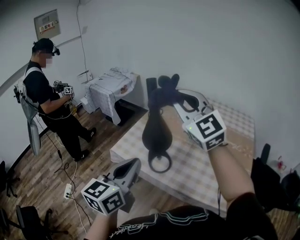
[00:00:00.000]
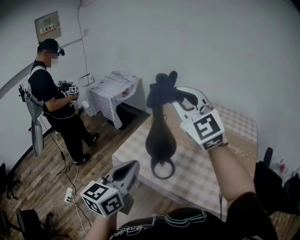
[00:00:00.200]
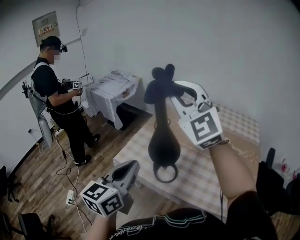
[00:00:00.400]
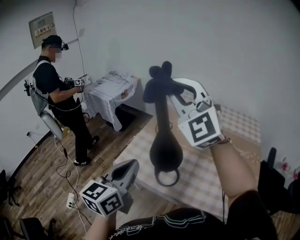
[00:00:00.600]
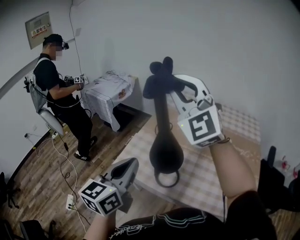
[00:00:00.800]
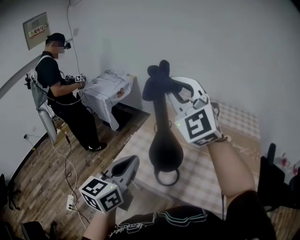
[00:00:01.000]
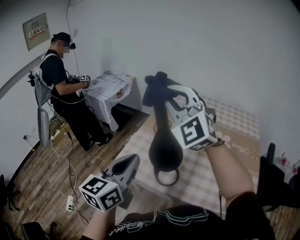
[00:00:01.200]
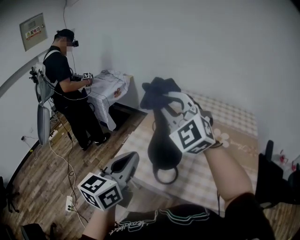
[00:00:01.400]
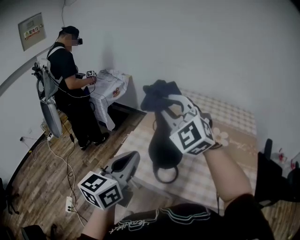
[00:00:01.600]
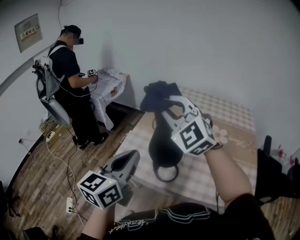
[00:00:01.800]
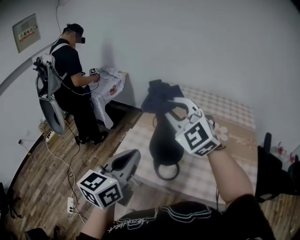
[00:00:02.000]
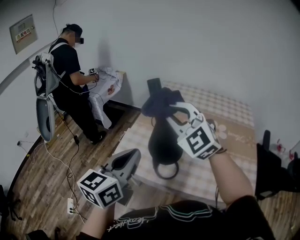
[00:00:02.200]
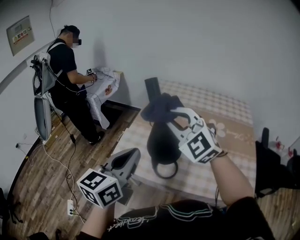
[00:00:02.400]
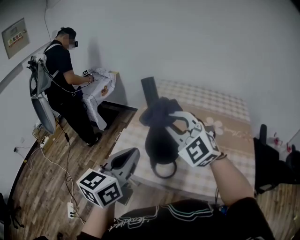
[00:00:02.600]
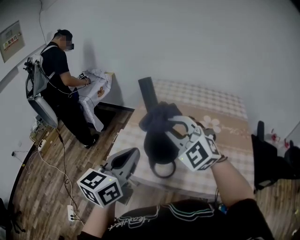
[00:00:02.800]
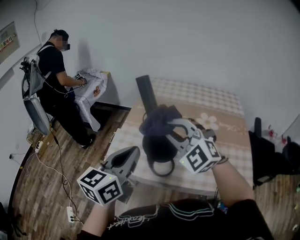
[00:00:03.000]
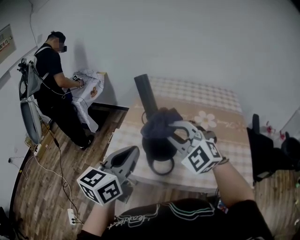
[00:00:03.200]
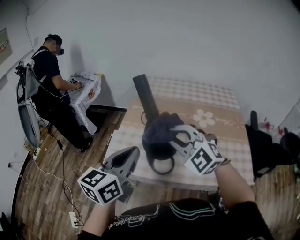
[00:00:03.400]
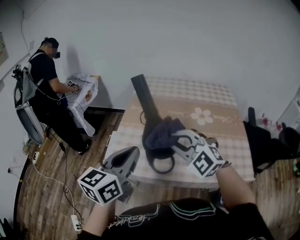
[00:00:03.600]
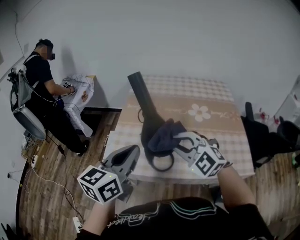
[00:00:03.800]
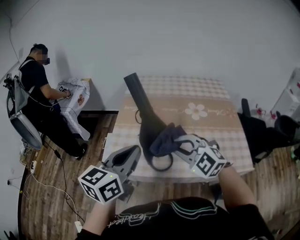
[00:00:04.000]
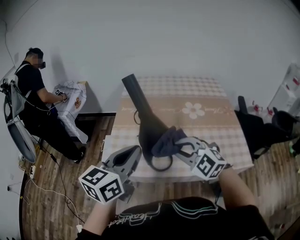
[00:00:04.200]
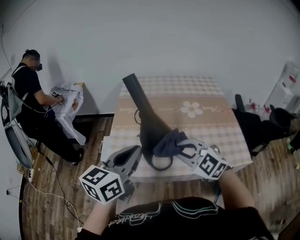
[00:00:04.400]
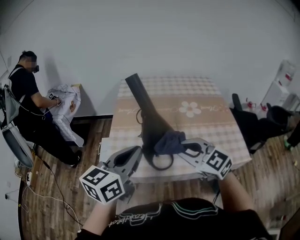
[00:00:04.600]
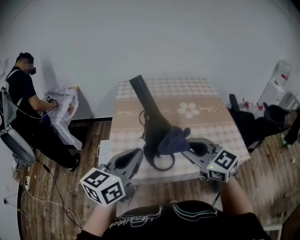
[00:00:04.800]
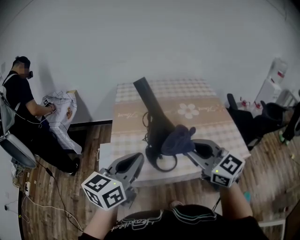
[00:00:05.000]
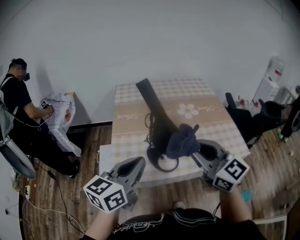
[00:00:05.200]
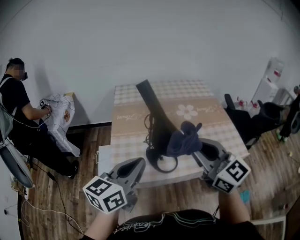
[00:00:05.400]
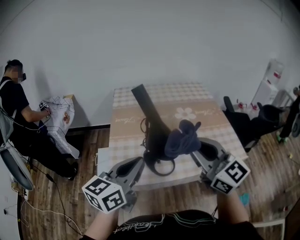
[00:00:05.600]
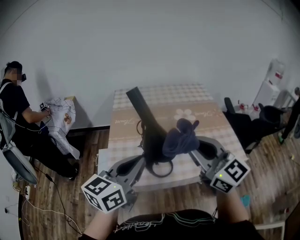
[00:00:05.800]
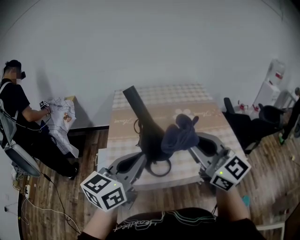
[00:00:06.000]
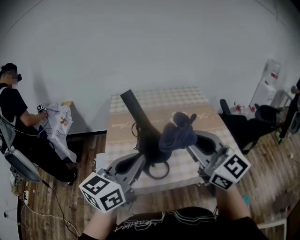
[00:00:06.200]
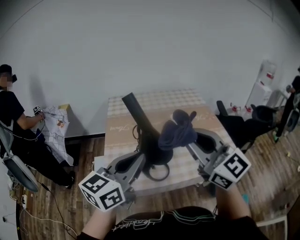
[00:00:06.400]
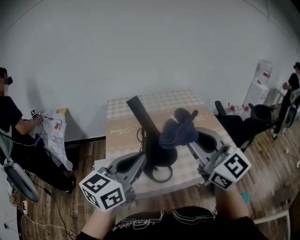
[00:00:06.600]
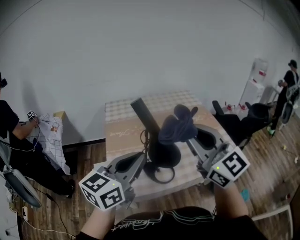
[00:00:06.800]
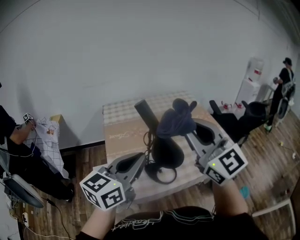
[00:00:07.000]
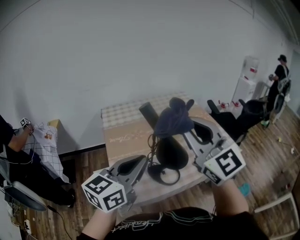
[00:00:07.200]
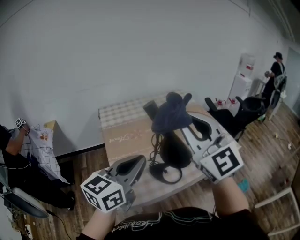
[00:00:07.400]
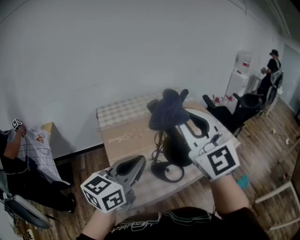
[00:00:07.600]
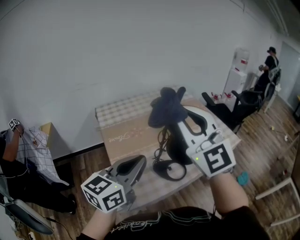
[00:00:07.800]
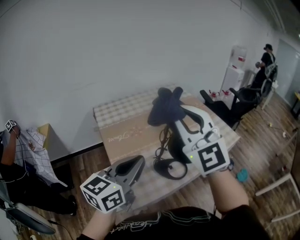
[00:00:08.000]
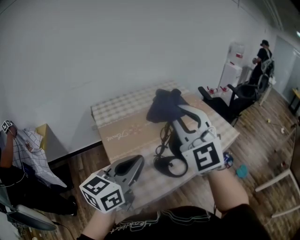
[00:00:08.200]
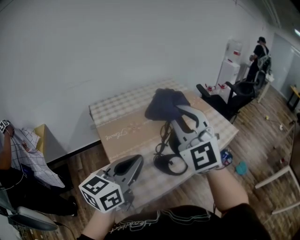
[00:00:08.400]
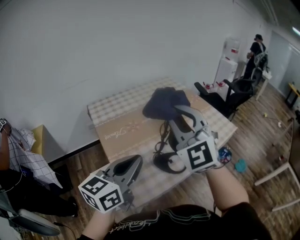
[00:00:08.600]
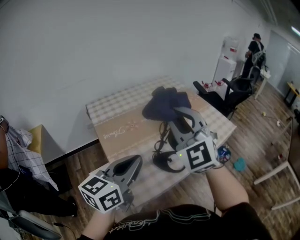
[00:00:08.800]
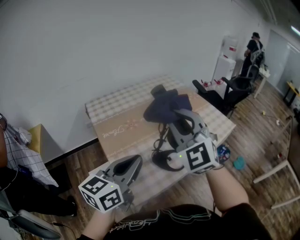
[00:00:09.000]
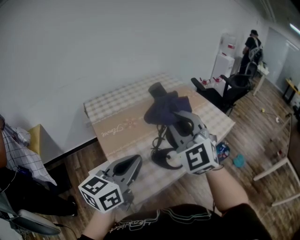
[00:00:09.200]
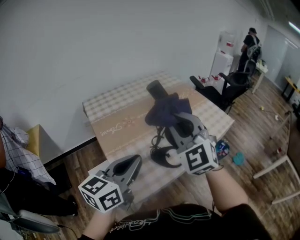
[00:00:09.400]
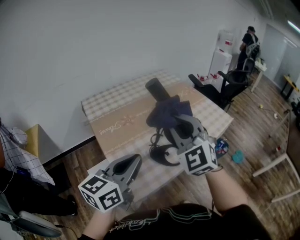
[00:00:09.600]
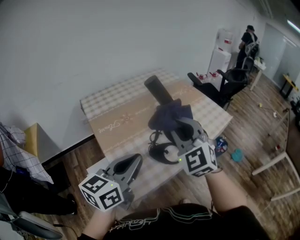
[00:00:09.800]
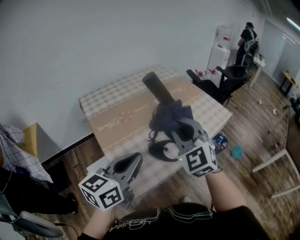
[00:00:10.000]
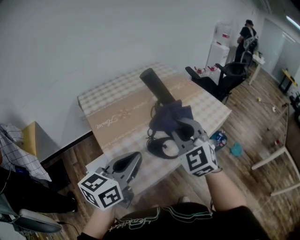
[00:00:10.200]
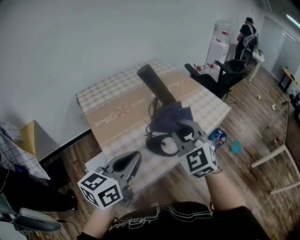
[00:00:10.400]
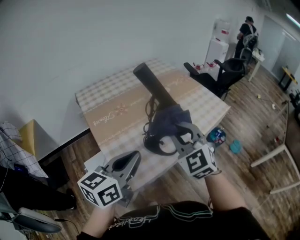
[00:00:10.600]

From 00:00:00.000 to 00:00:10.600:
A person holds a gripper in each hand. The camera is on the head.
From 00:00:00.000 to 00:00:01.600: The right gripper shifts some 10 cm to the left, forward and downward, and turns by approximately 20 degrees. The left gripper goes about 10 cm forward.
From 00:00:01.600 to 00:00:03.000: The right gripper moves downward and backward, some 10 cm.
From 00:00:03.000 to 00:00:04.600: The right gripper heads backward and downward, covering some 10 cm, and rotates some 40 degrees. The left gripper turns by roughly 20 degrees.
From 00:00:04.600 to 00:00:06.000: The right gripper shifts approximately 15 cm upward, and turns by approximately 30 degrees.
From 00:00:06.000 to 00:00:07.600: The left gripper shifts approximately 15 cm to the left. The right gripper travels to the left and upward by roughly 20 cm, and rotates about 40 degrees.
From 00:00:07.600 to 00:00:09.000: The left gripper is displaced to the left by roughly 5 cm. Meanwhile the right gripper is displaced downward and to the left by some 10 cm, and rotates roughly 30 degrees.
From 00:00:09.000 to 00:00:10.600: The right gripper heads downward and to the right, covering about 15 cm. The left gripper shifts by some 5 cm.

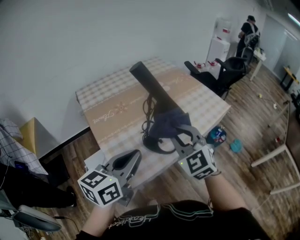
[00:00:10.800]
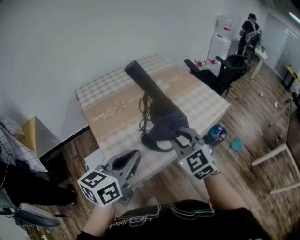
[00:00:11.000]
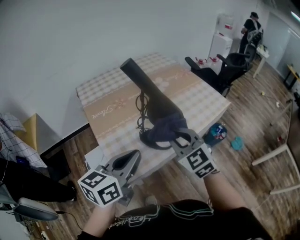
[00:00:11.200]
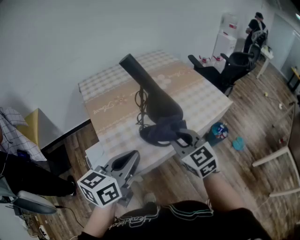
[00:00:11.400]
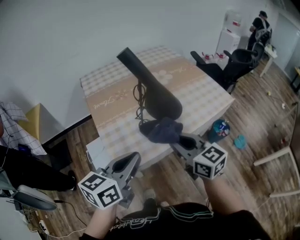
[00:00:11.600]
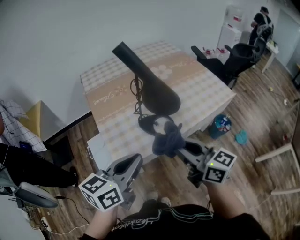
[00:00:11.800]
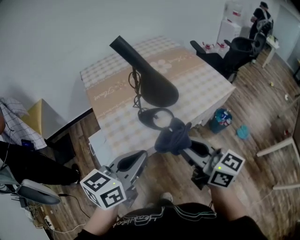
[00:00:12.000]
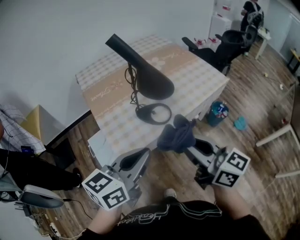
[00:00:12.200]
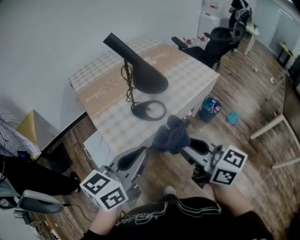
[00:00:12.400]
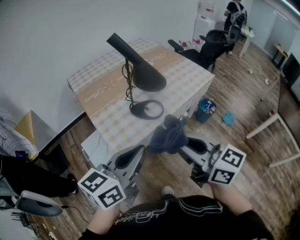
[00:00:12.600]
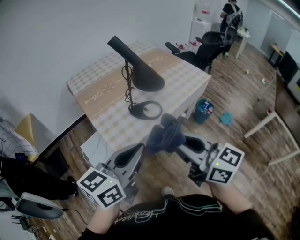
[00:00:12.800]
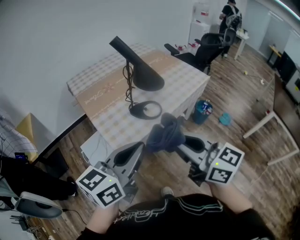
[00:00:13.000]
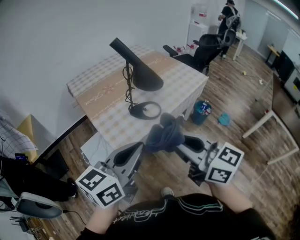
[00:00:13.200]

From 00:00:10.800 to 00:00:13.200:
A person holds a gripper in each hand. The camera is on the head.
From 00:00:10.800 to 00:00:12.000: The two grippers go about 15 cm backward and to the right. The right gripper twists about 50 degrees clockwise, seen from behind.
From 00:00:12.000 to 00:00:13.200: Both grippers travel together backward and upward, about 15 cm.

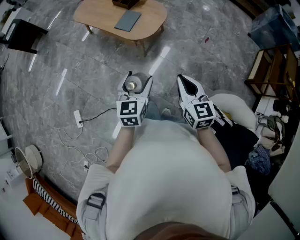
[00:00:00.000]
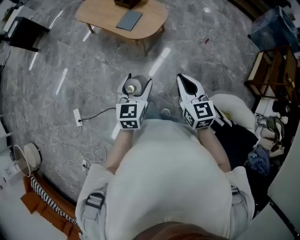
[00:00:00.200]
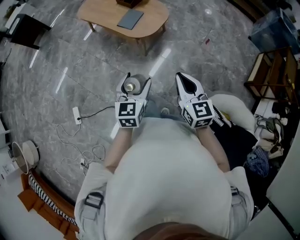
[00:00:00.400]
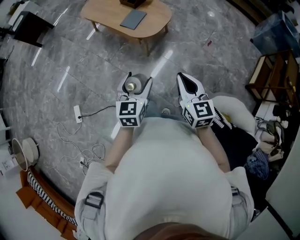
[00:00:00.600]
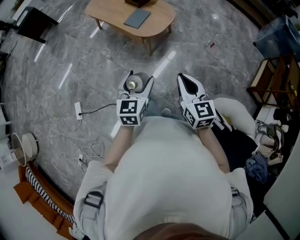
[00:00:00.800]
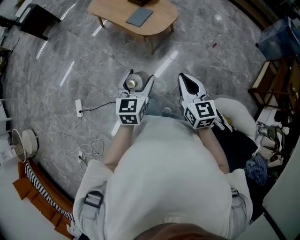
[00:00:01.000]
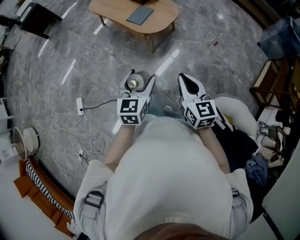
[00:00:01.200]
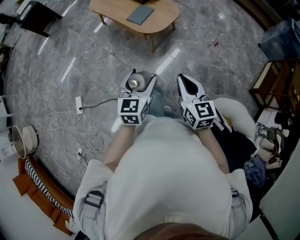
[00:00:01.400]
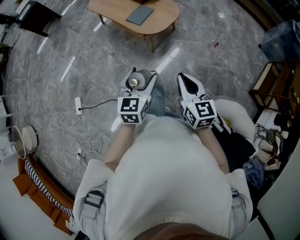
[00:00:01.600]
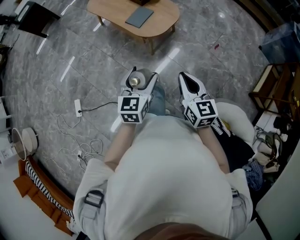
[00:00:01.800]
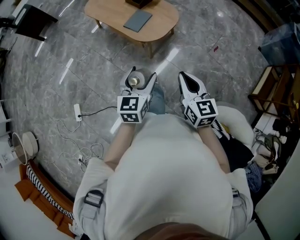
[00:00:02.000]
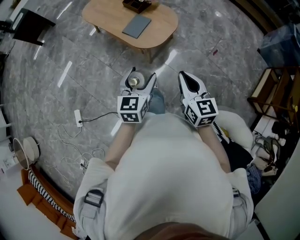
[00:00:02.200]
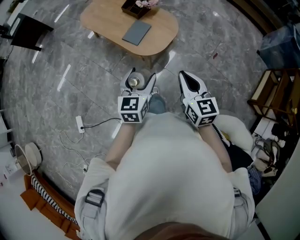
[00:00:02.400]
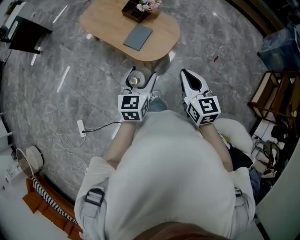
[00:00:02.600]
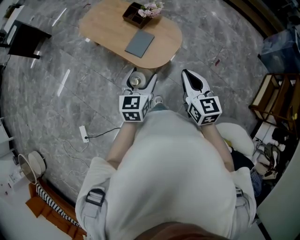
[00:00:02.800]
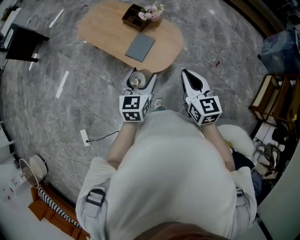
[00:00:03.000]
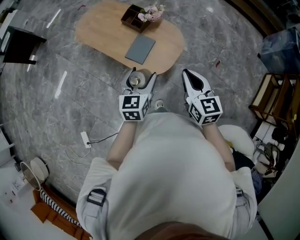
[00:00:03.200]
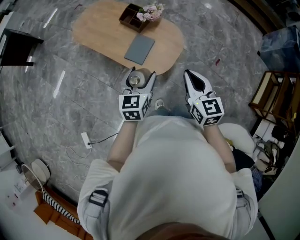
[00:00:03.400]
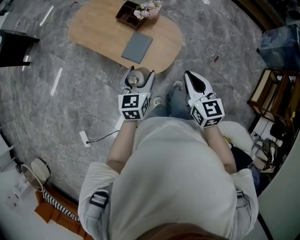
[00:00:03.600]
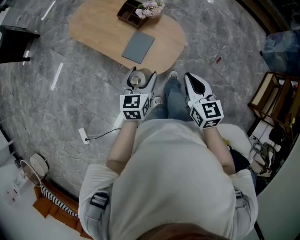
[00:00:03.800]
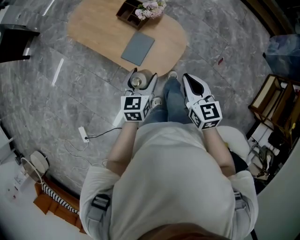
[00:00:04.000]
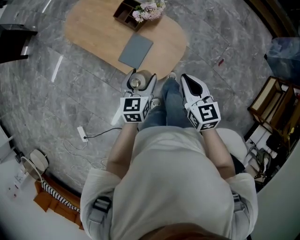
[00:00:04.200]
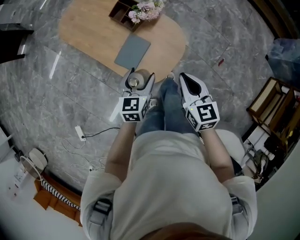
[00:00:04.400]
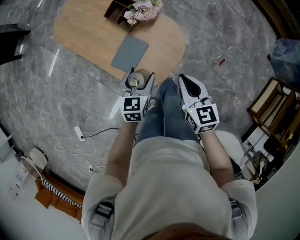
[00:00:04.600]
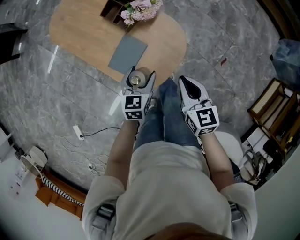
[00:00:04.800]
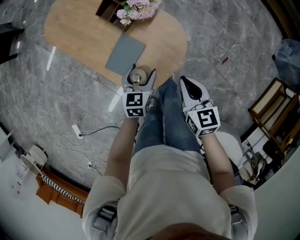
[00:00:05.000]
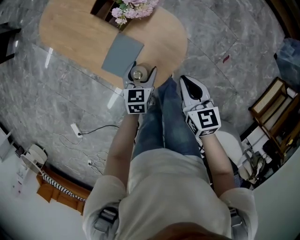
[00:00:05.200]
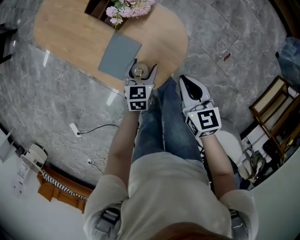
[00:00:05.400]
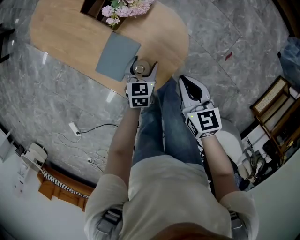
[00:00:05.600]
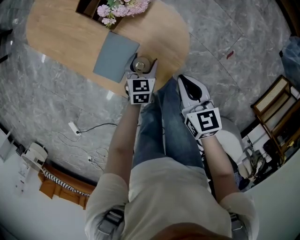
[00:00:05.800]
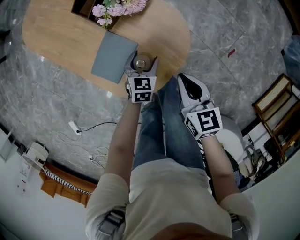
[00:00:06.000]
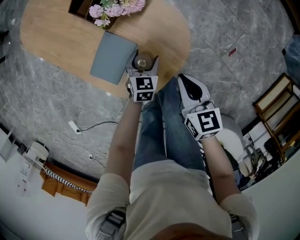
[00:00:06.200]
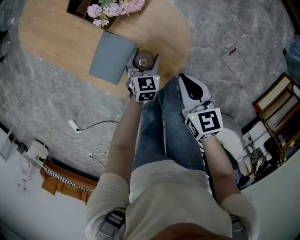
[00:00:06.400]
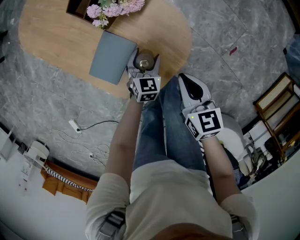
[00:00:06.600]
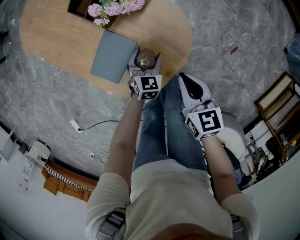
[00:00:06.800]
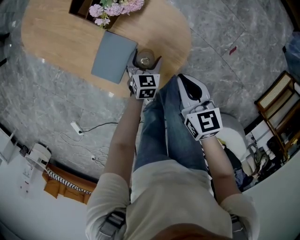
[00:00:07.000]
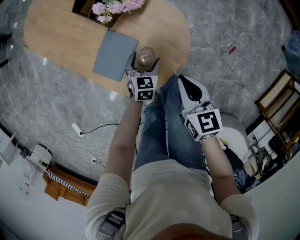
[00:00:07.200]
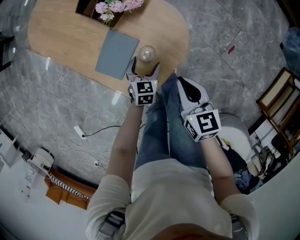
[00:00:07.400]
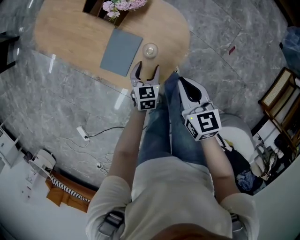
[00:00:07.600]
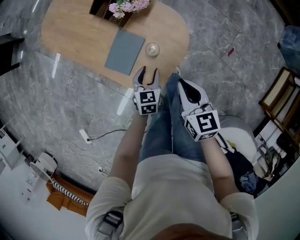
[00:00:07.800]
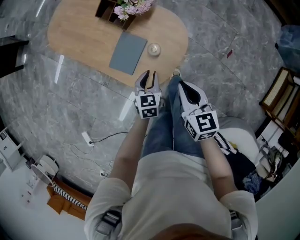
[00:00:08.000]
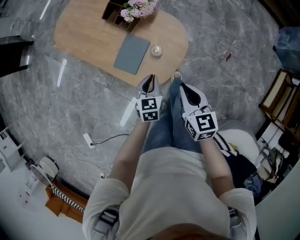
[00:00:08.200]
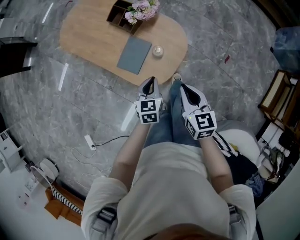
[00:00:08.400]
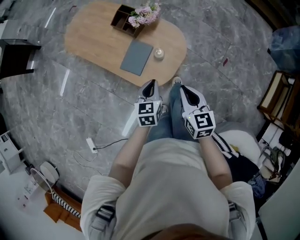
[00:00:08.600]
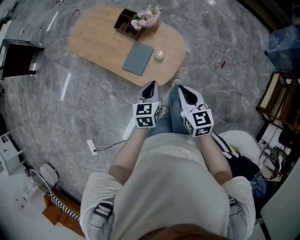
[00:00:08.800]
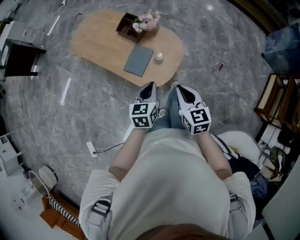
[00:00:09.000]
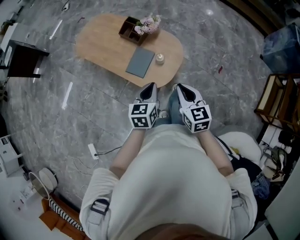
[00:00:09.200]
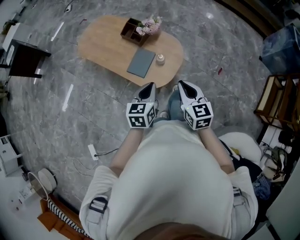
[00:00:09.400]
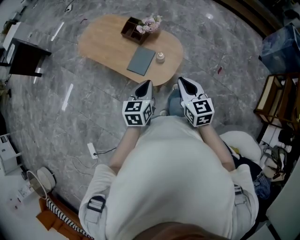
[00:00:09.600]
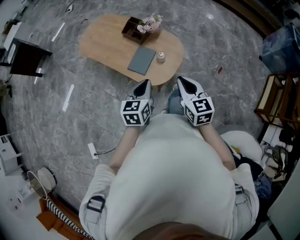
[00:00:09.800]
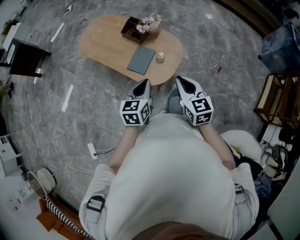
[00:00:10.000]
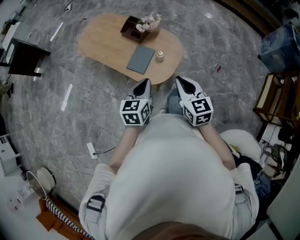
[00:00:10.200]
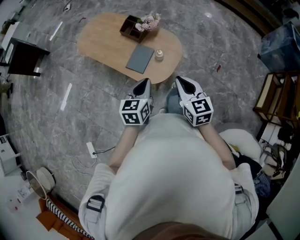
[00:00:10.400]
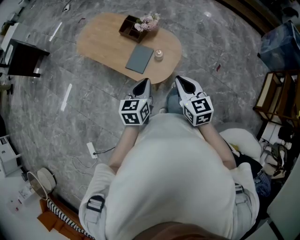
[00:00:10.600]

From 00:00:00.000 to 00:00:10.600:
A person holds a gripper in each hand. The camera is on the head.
From 00:00:01.600 to 00:00:03.000: Both grippers travel together forward, roughly 35 cm.
From 00:00:03.000 to 00:00:04.600: The two grippers go approximately 25 cm forward and downward.
From 00:00:04.600 to 00:00:06.000: The left gripper shifts about 25 cm downward; the right gripper is displaced downward by about 15 cm.
From 00:00:06.000 to 00:00:07.600: Both grippers travel together backward, some 5 cm.
From 00:00:07.600 to 00:00:09.000: Both grippers move upward and backward, some 25 cm. The left gripper closes up.
From 00:00:09.000 to 00:00:10.600: Both grippers move upward, some 5 cm.
